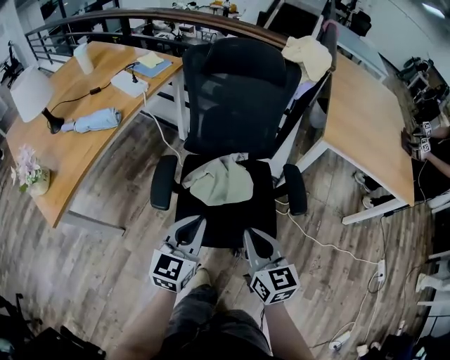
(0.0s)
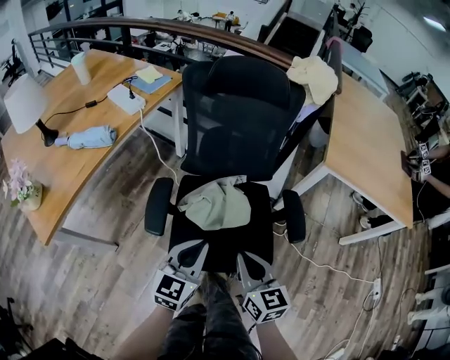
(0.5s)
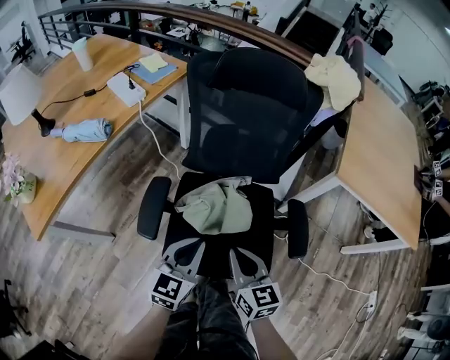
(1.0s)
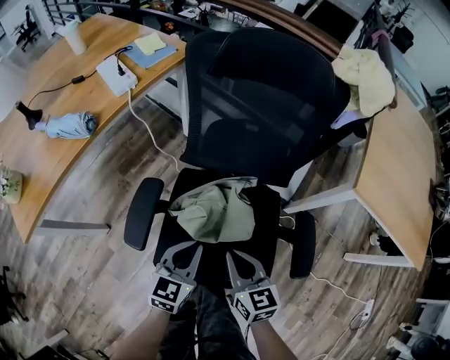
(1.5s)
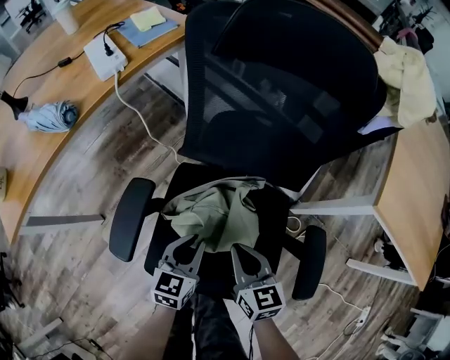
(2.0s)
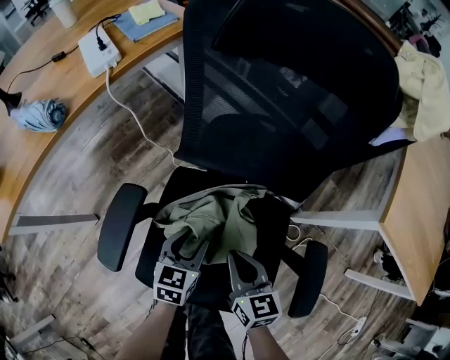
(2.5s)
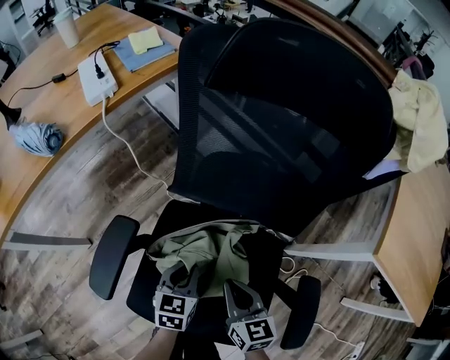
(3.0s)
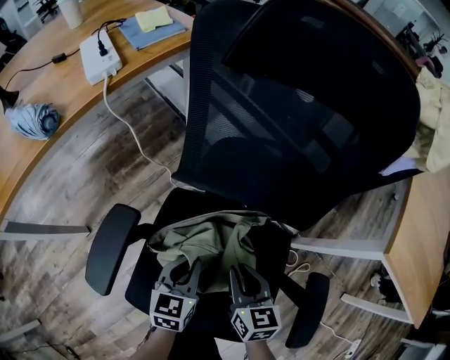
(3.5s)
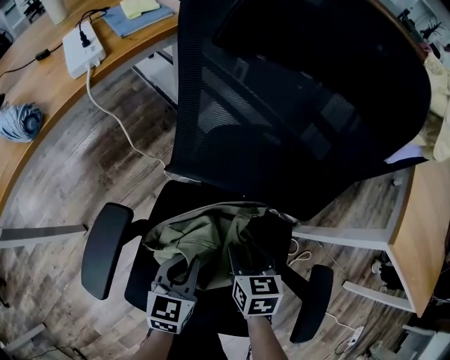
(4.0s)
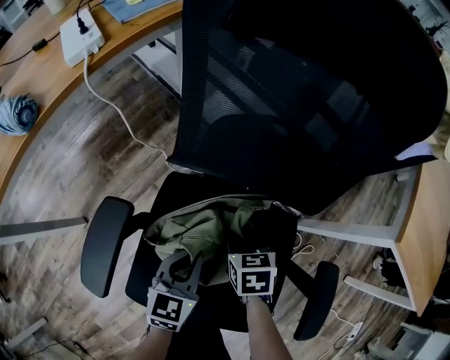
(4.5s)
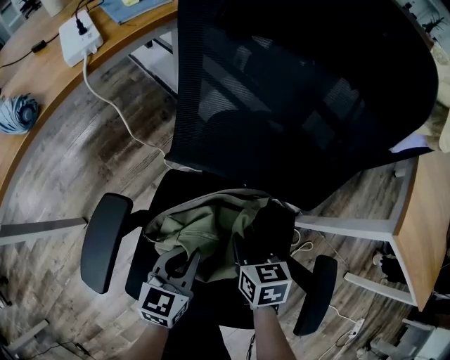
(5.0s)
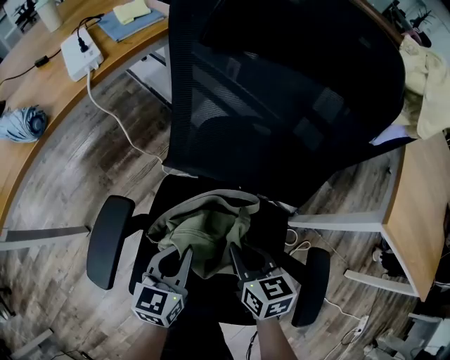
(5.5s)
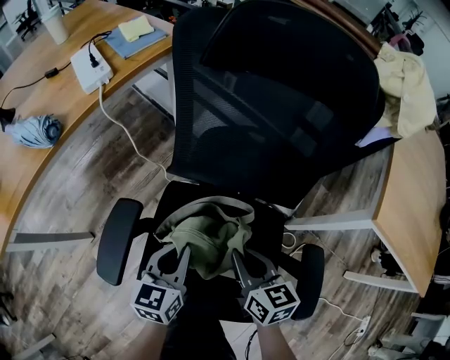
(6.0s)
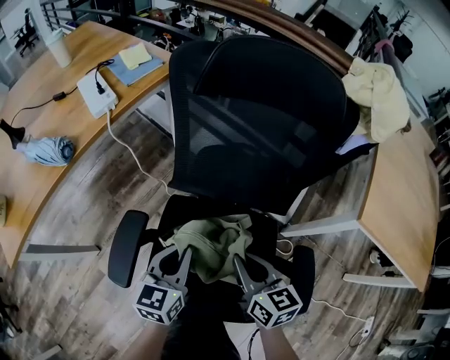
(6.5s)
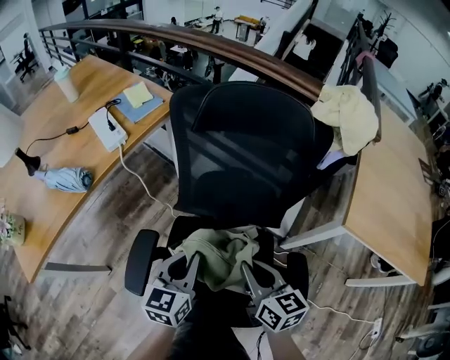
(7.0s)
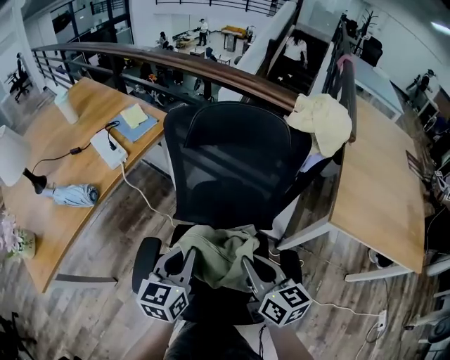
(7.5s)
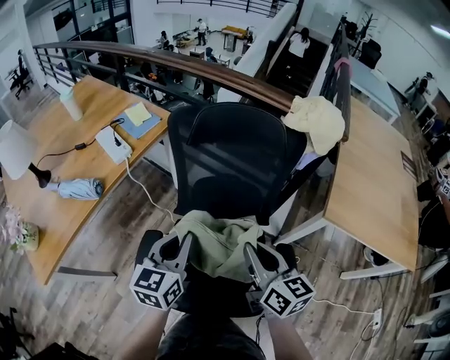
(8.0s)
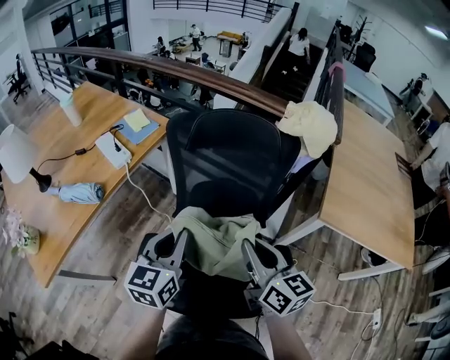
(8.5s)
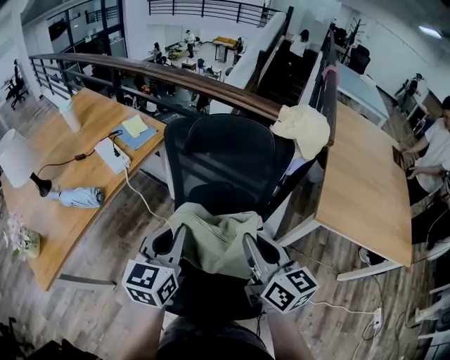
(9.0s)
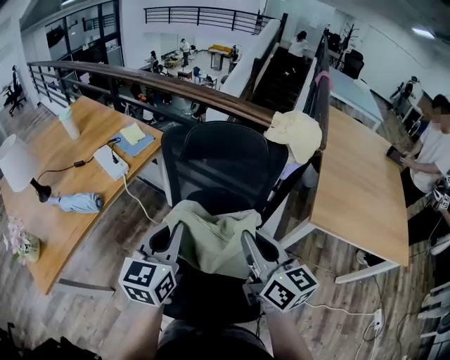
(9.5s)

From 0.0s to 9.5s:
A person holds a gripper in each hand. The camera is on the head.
From 0.0s to 2.0s: The left gripper heads downward and forward, covering some 30 cm, and turns by about 20 degrees. Meanwhile the right gripper travels forward and downward by some 30 cm.
From 2.0s to 4.0s: The left gripper moves downward and forward, about 10 cm, and opens, then closes again, while the right gripper shifts roughly 15 cm downward and forward, and opens.
From 4.0s to 5.5s: The right gripper moves upward, some 5 cm, and closes up.
From 5.5s to 7.5s: Both grippers travel together upward, roughly 25 cm. The right gripper rotates approximately 20 degrees.
From 7.5s to 9.5s: Both grippers move upward, approximately 15 cm.

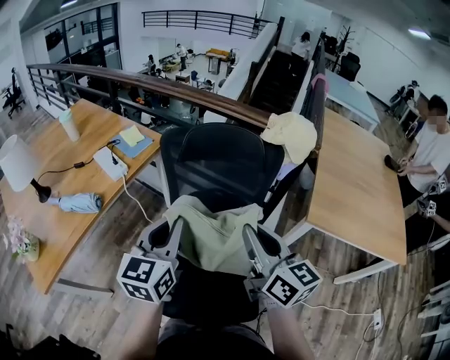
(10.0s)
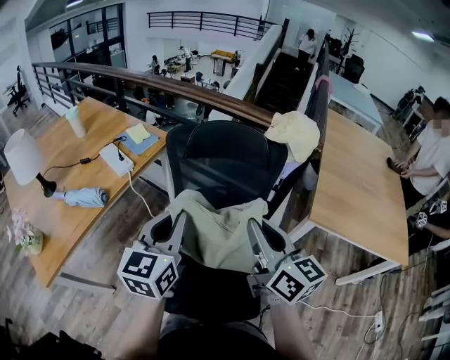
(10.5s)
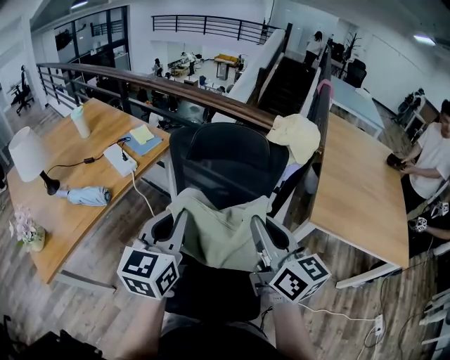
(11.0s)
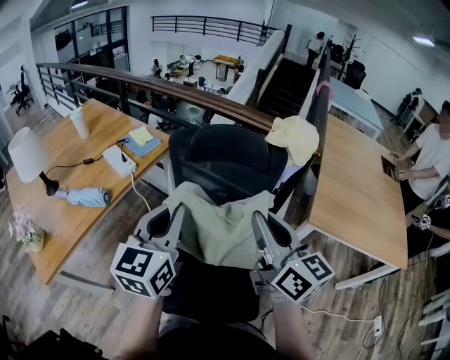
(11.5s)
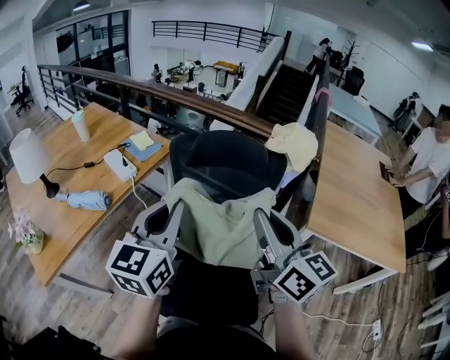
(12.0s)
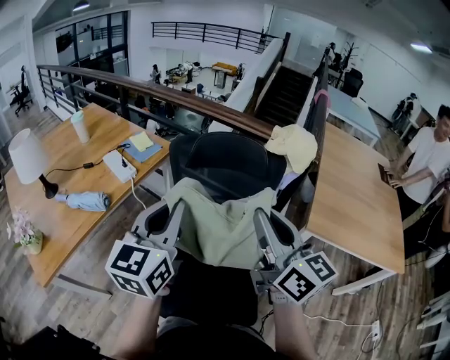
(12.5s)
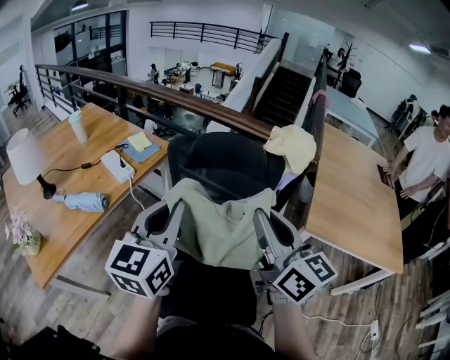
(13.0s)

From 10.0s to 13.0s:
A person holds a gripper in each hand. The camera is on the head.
From 10.0s to 11.5s: The two grippers go roughly 5 cm upward.
From 11.5s to 13.0s: There are only small adjustments of the grippers.

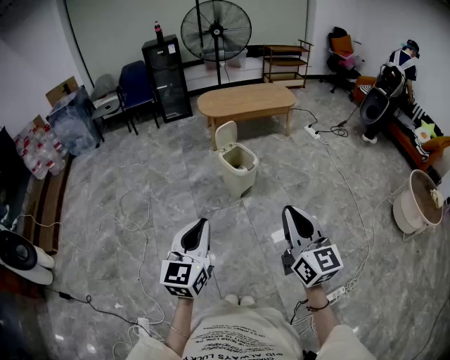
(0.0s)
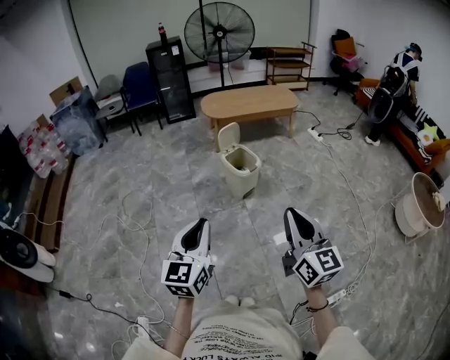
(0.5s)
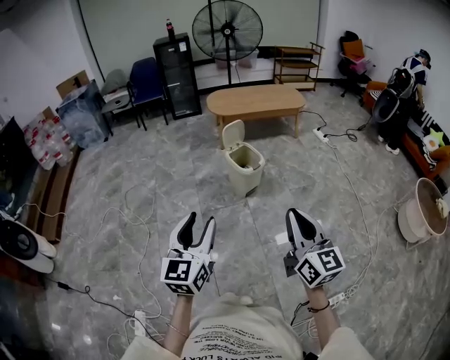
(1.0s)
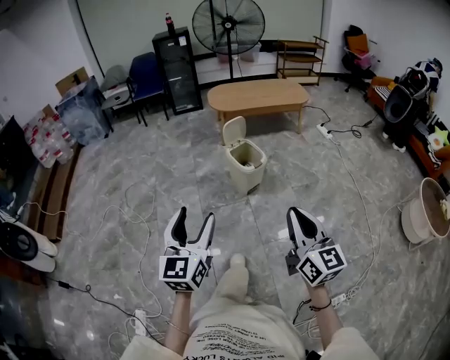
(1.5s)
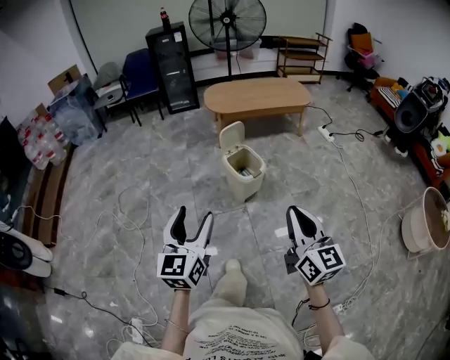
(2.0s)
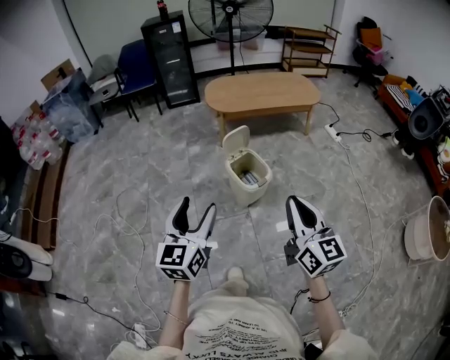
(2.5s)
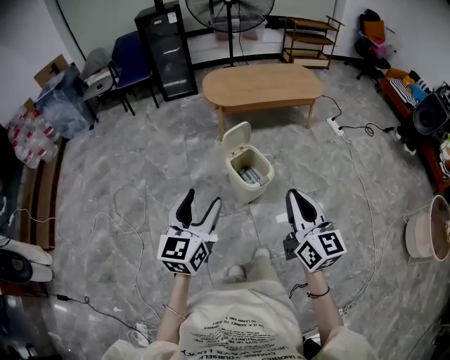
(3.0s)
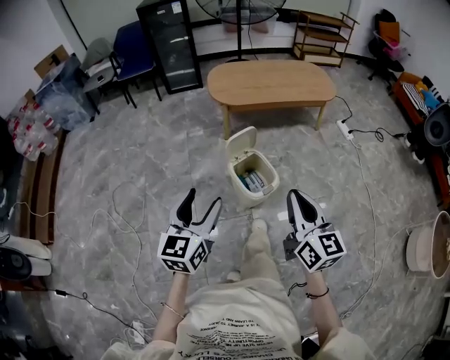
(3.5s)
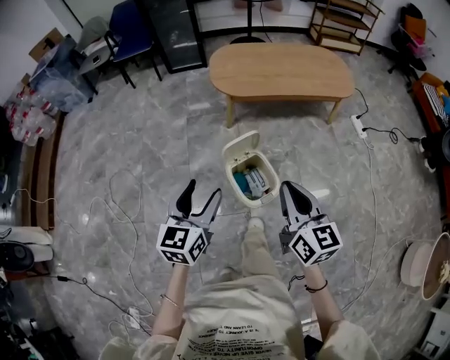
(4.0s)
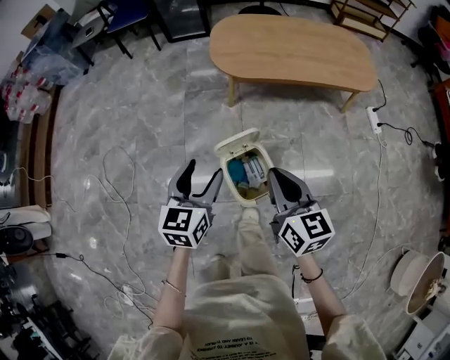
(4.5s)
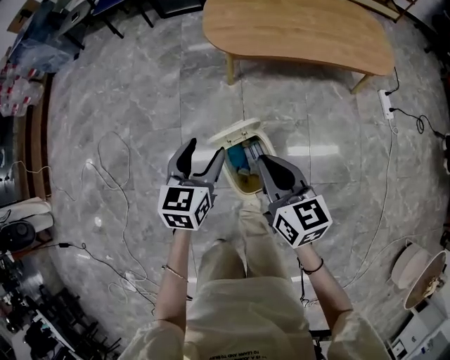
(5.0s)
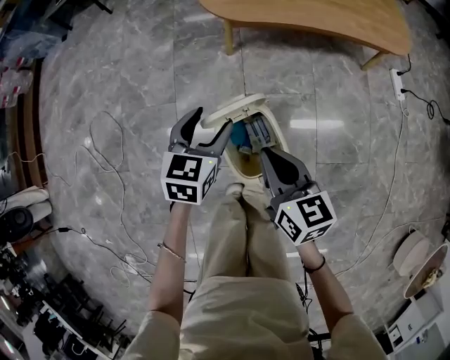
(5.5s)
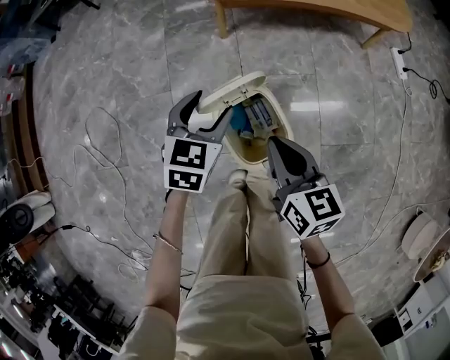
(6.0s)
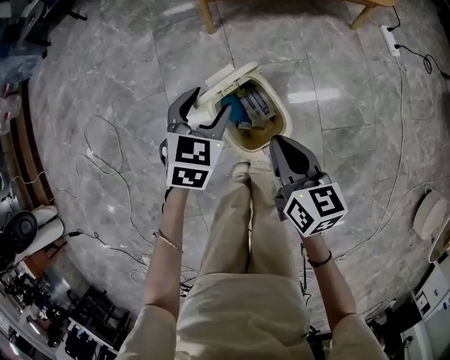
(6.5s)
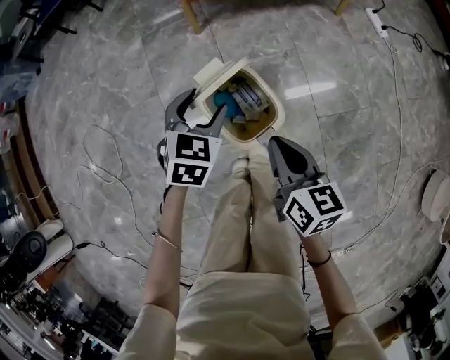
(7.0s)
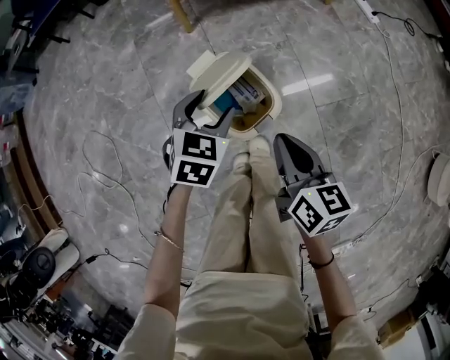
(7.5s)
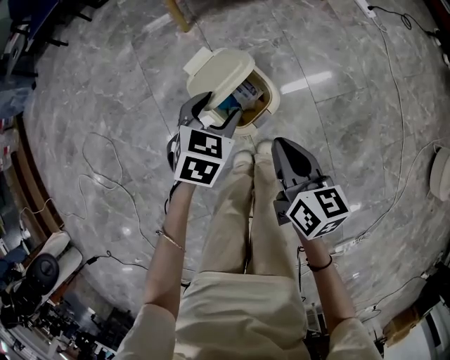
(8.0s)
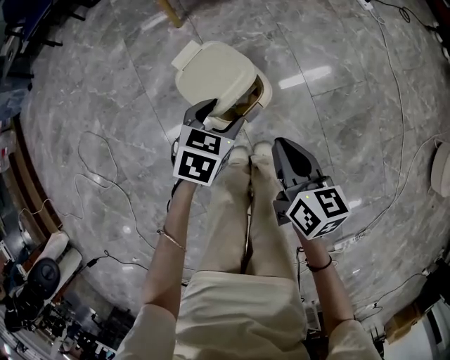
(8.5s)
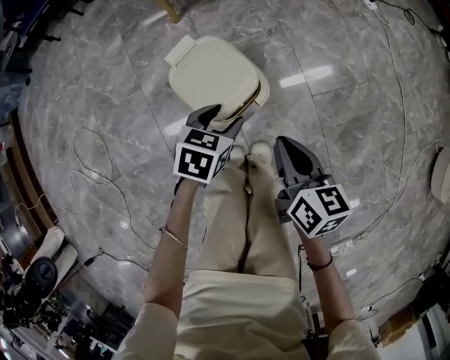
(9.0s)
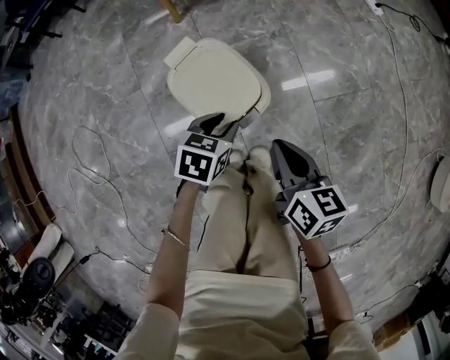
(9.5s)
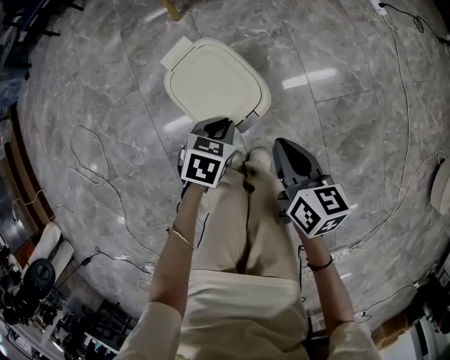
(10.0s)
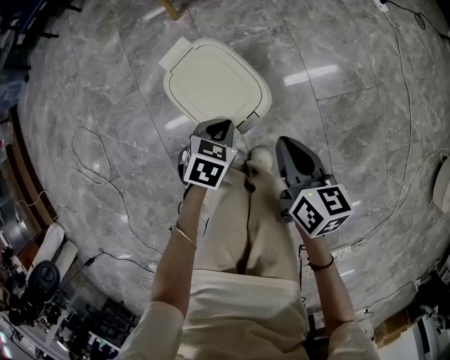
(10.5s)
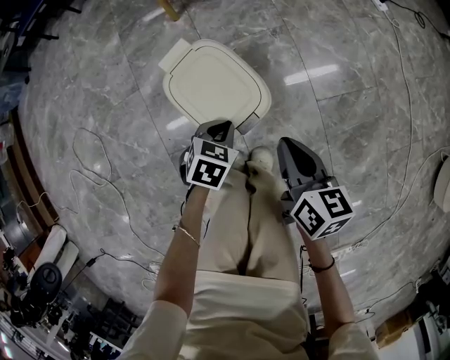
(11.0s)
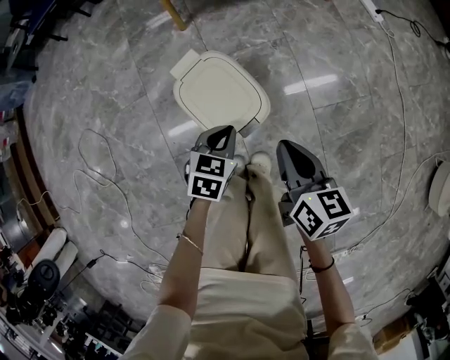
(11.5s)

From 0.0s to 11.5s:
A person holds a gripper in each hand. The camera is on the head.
From 0.0s to 2.0s: Both grippers travel together forward, roughly 15 cm. The left gripper opens up.
From 2.0s to 4.0s: The pair of grippers is taken forward, approximately 40 cm.
From 4.0s to 6.0s: Both grippers move downward and forward, approximately 30 cm. The left gripper swivels some 30 degrees, while the right gripper changes its angle by approximately 20 degrees.
From 6.0s to 7.5s: The left gripper heads backward and to the right, covering approximately 10 cm; the right gripper is displaced backward by some 10 cm, and changes its angle by approximately 20 degrees.
From 7.5s to 9.5s: The left gripper travels downward, to the right and backward by approximately 15 cm, swivels some 20 degrees, and closes; the right gripper moves downward, about 10 cm.
From 9.5s to 11.5s: The left gripper closes up.

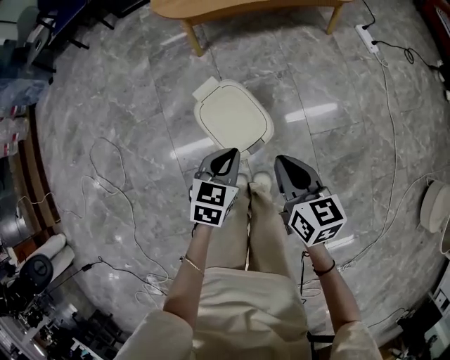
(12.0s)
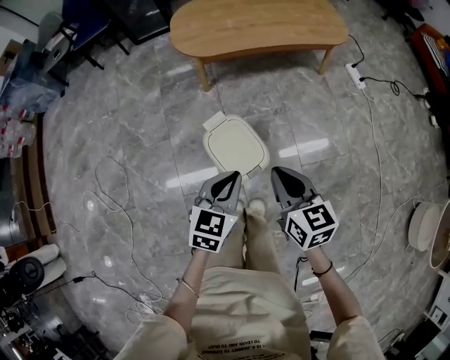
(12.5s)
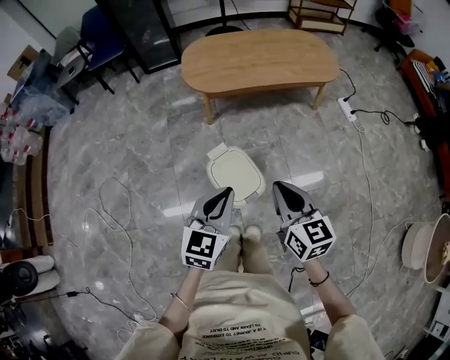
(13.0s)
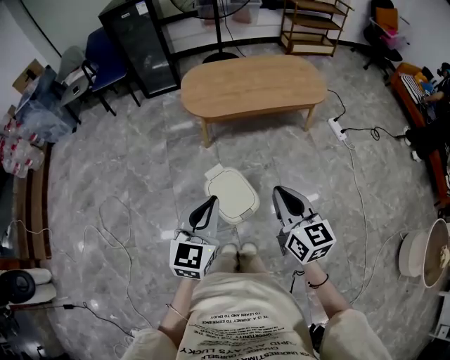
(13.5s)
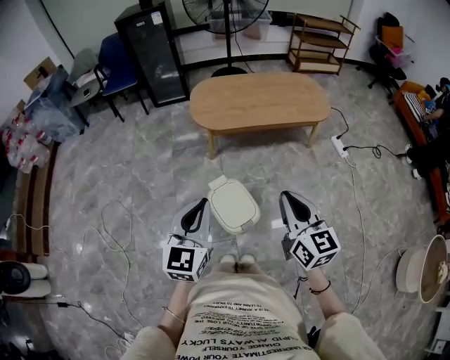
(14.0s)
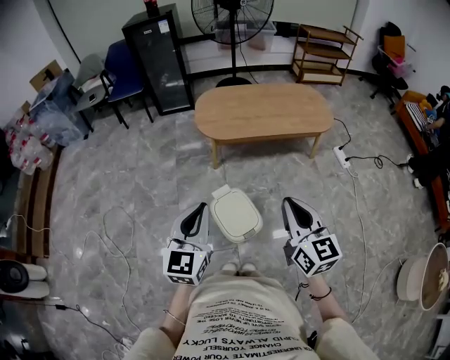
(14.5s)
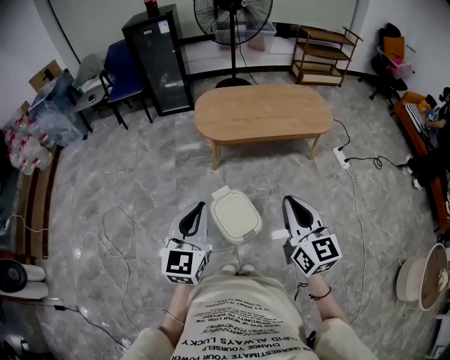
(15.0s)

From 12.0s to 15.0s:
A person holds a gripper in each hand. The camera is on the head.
From 12.0s to 13.5s: Both grippers move upward, approximately 25 cm. The left gripper swivels about 30 degrees. The right gripper turns by about 20 degrees.
From 13.5s to 15.0s: The left gripper is displaced to the left by some 5 cm, while the right gripper heads upward, covering some 5 cm.
